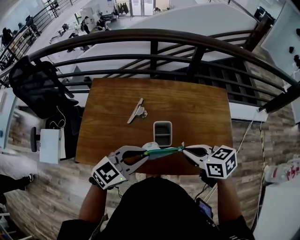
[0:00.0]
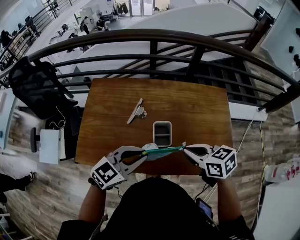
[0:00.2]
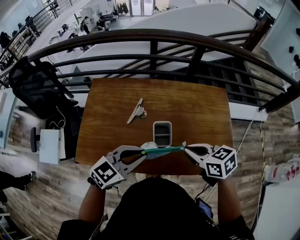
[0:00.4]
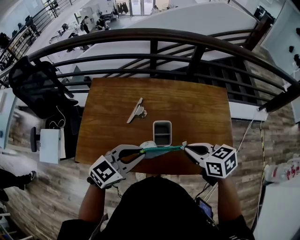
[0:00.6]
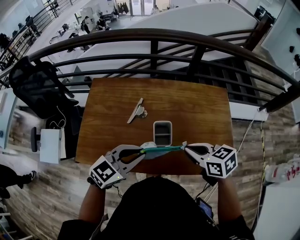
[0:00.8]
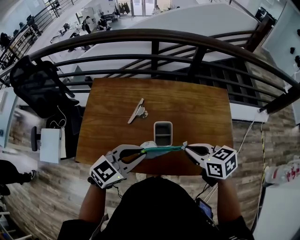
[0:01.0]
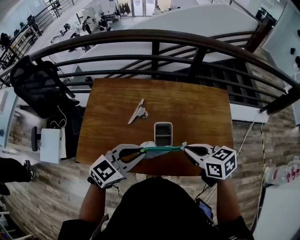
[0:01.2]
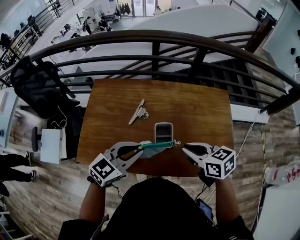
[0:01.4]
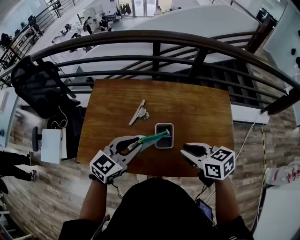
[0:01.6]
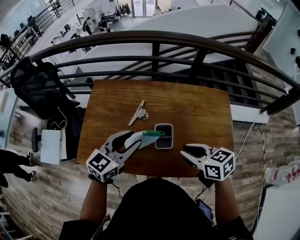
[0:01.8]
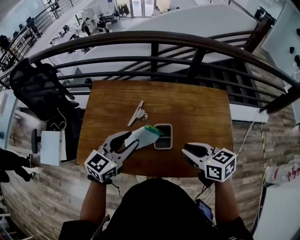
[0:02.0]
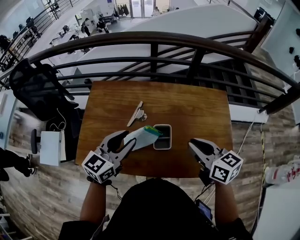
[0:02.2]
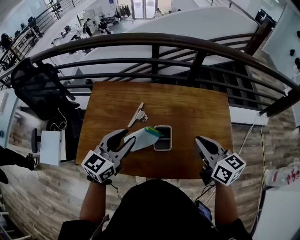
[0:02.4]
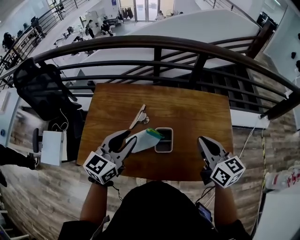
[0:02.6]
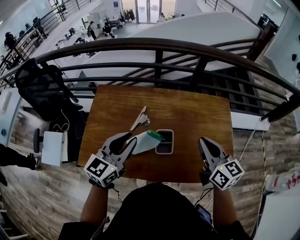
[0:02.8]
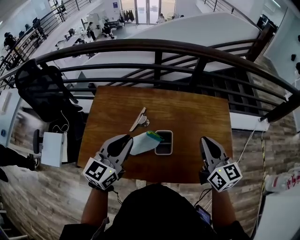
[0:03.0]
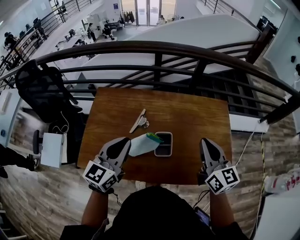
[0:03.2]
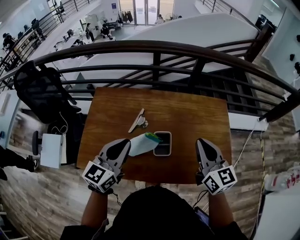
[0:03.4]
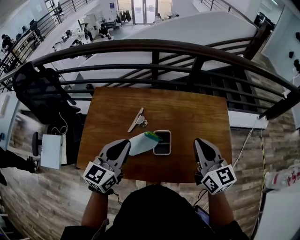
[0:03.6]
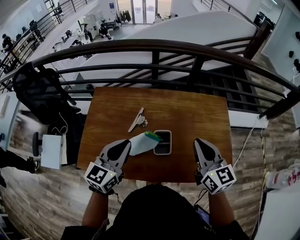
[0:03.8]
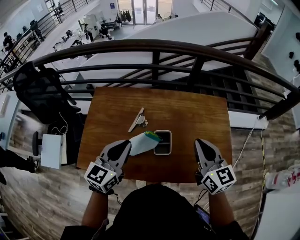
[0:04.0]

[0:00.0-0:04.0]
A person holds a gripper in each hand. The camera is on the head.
0:00.0 to 0:01.4: The grippers move only a little.
0:01.4 to 0:02.6: The right gripper goes about 10 cm upward and to the right, and swivels roughly 30 degrees. The left gripper goes approximately 5 cm forward, and swivels approximately 20 degrees.
0:02.6 to 0:04.0: The left gripper closes up.

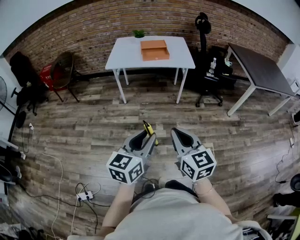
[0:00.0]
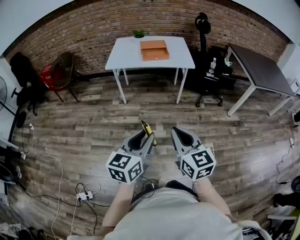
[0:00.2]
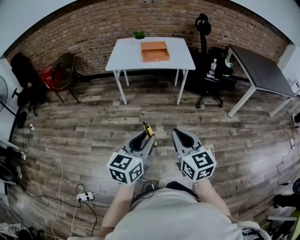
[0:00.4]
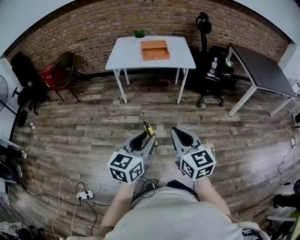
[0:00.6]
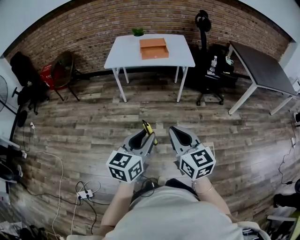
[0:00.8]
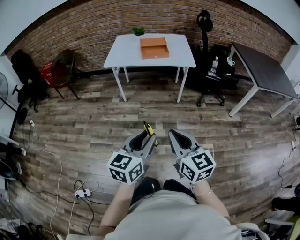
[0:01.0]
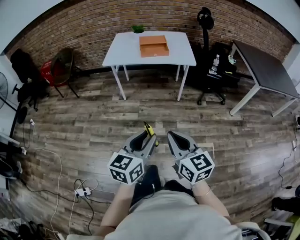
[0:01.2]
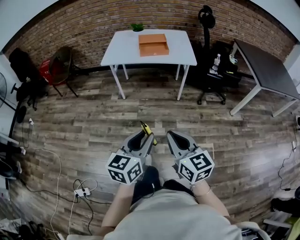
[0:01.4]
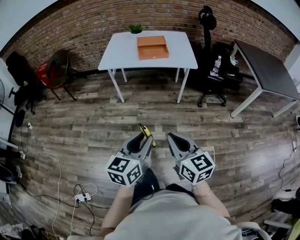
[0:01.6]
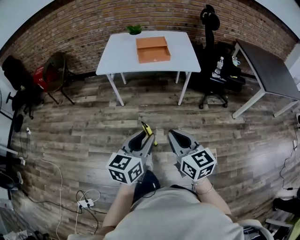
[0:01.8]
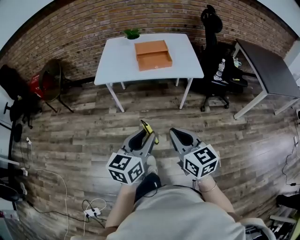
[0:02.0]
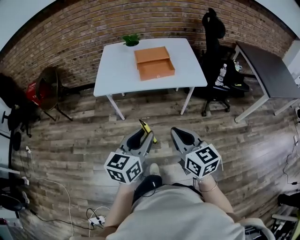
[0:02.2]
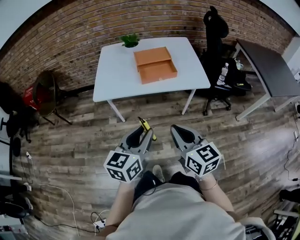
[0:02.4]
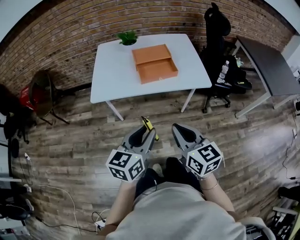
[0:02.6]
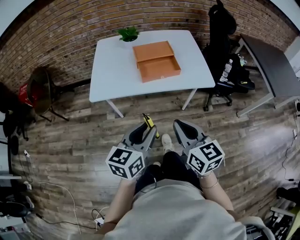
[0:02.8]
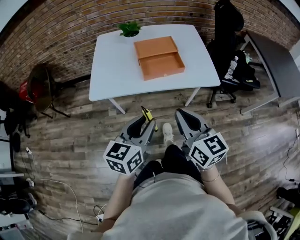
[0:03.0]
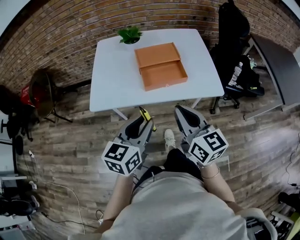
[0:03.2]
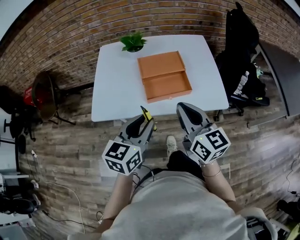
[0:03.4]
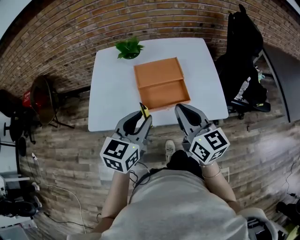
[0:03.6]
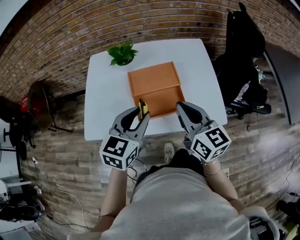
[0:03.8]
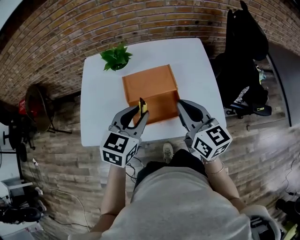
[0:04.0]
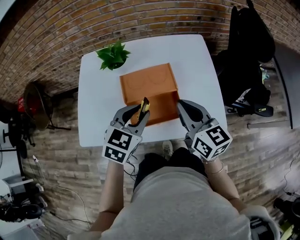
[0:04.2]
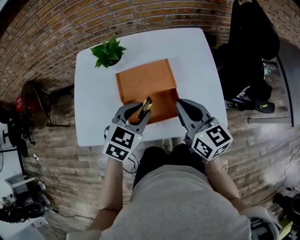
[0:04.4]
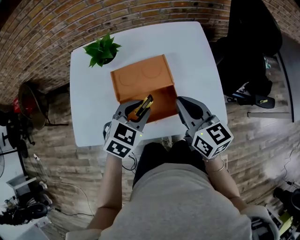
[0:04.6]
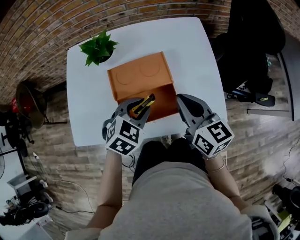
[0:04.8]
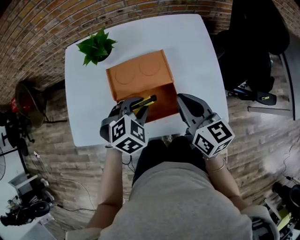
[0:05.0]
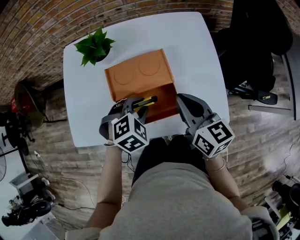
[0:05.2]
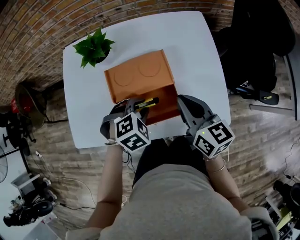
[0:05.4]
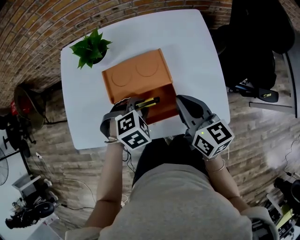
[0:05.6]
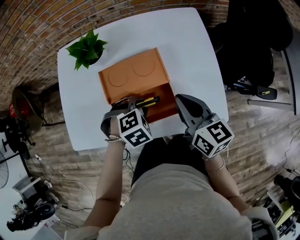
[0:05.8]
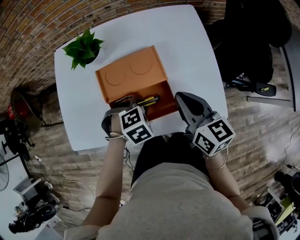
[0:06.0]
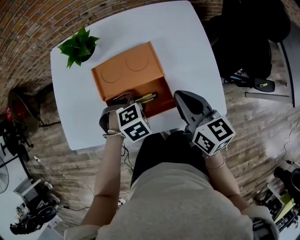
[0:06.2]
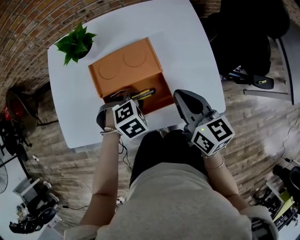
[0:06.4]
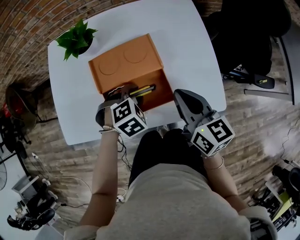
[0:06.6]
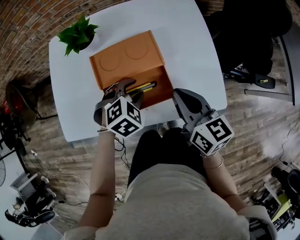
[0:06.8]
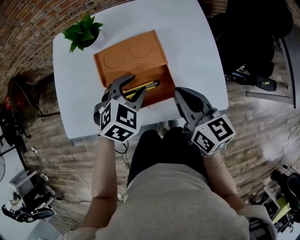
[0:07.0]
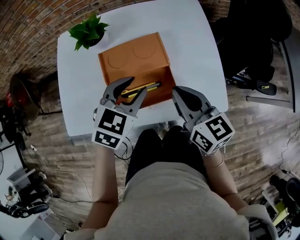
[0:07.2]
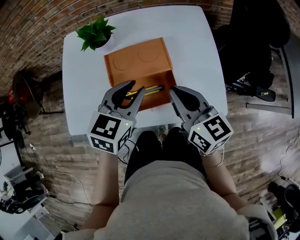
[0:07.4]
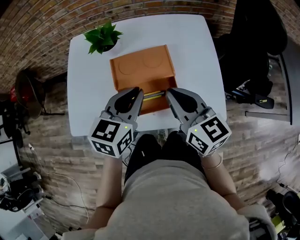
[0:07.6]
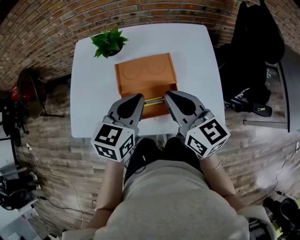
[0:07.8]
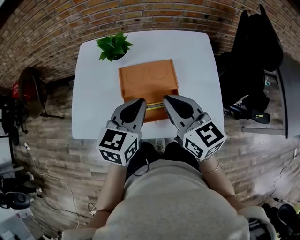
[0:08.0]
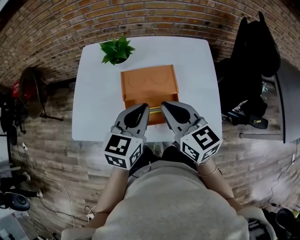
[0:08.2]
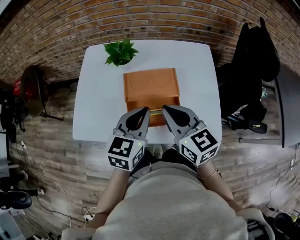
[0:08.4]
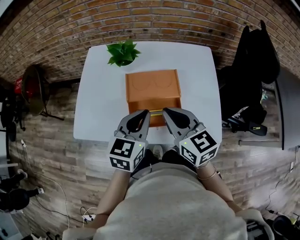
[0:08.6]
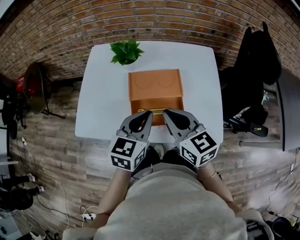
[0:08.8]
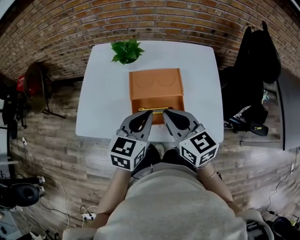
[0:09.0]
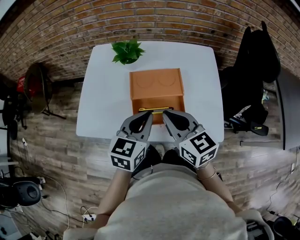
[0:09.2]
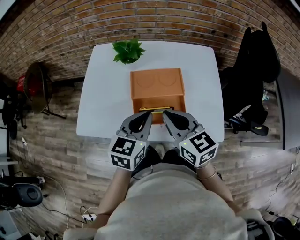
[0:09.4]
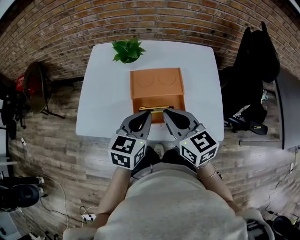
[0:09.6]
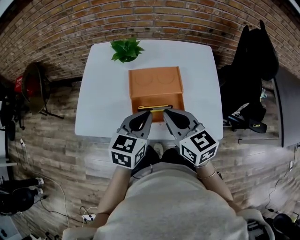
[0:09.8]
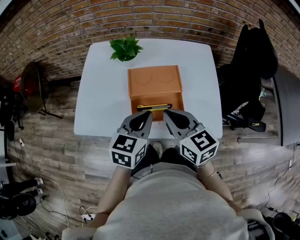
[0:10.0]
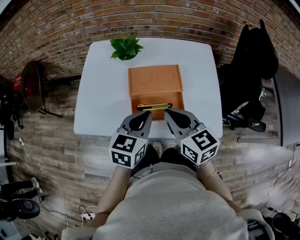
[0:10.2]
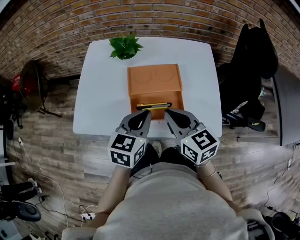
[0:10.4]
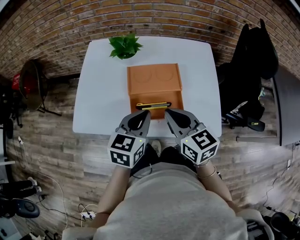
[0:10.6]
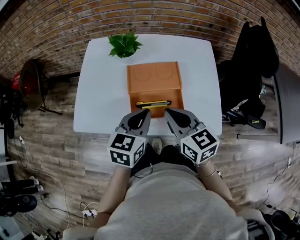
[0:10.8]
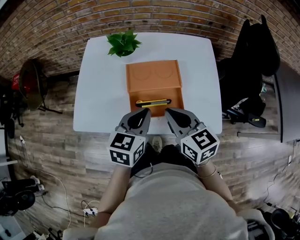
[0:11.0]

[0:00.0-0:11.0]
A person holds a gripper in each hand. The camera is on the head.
0:00.0 to 0:01.6: The left gripper travels forward by about 10 cm; the right gripper travels forward and downward by roughly 10 cm.
0:01.6 to 0:03.2: The two grippers travel together, forward, approximately 50 cm.
0:03.2 to 0:04.8: The two grippers go roughly 30 cm forward. The left gripper tips its fingers downward by roughly 30 degrees.
0:04.8 to 0:06.2: The left gripper goes approximately 10 cm downward, and rotates roughly 30 degrees.
0:06.2 to 0:07.8: The left gripper moves upward, some 20 cm, tilts its fingers roughly 50 degrees upward, and closes, while the right gripper shifts approximately 10 cm upward.
0:07.8 to 0:09.4: The left gripper ends up about 5 cm from where it was. Meanwhile the right gripper moves to the left, about 5 cm.
0:09.4 to 0:11.0: The grippers stay close to where they were, moving slightly.

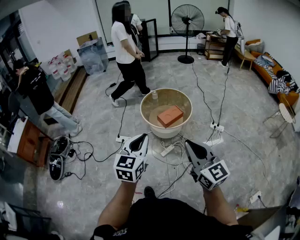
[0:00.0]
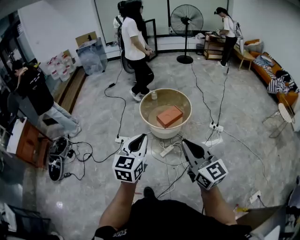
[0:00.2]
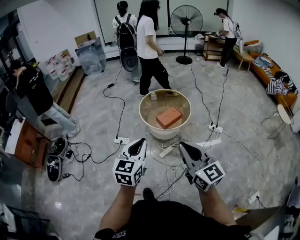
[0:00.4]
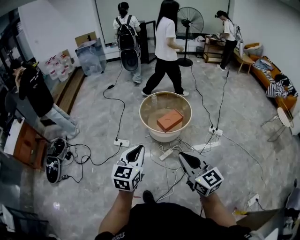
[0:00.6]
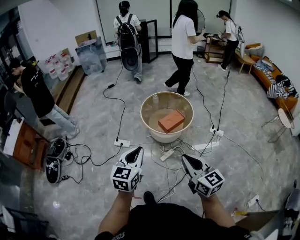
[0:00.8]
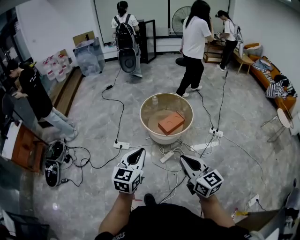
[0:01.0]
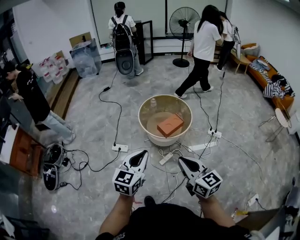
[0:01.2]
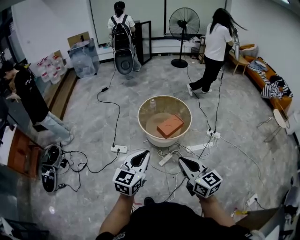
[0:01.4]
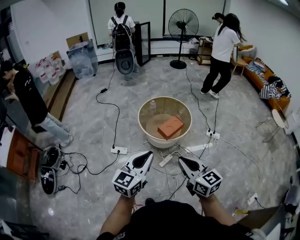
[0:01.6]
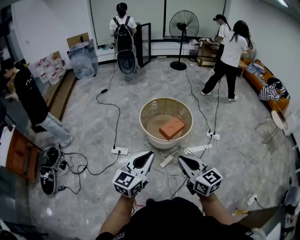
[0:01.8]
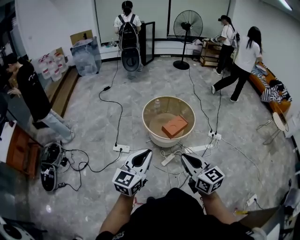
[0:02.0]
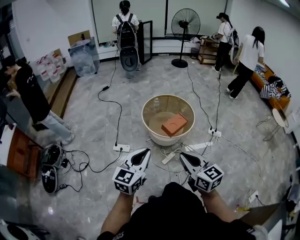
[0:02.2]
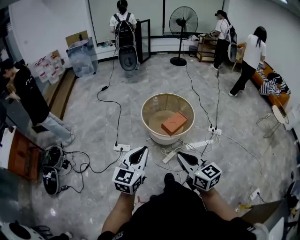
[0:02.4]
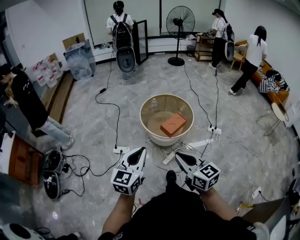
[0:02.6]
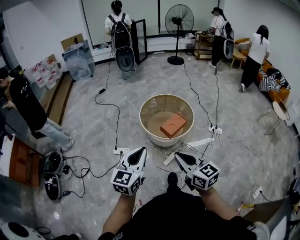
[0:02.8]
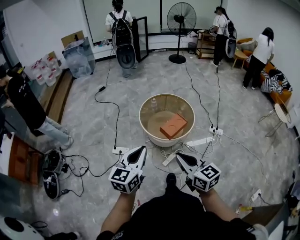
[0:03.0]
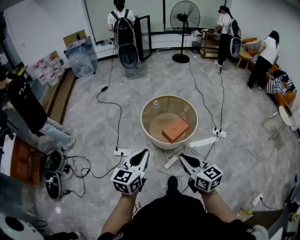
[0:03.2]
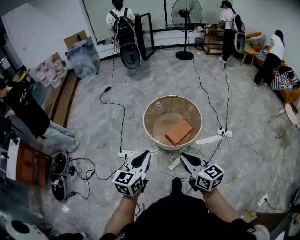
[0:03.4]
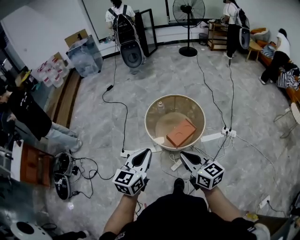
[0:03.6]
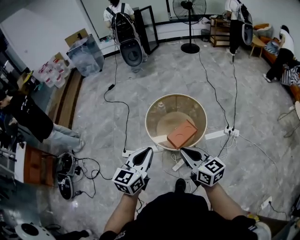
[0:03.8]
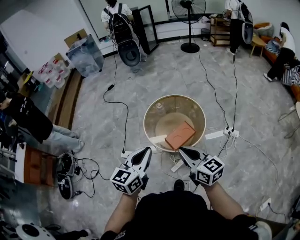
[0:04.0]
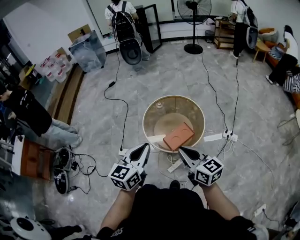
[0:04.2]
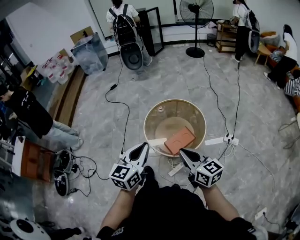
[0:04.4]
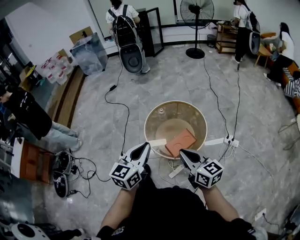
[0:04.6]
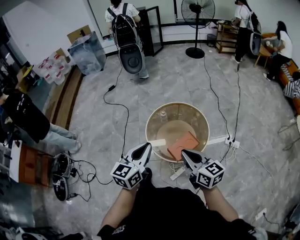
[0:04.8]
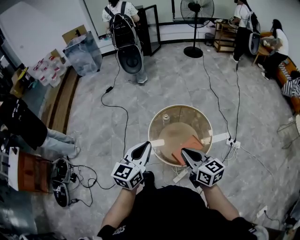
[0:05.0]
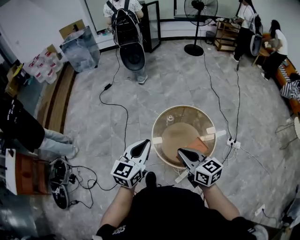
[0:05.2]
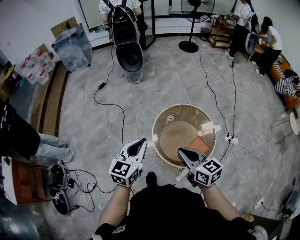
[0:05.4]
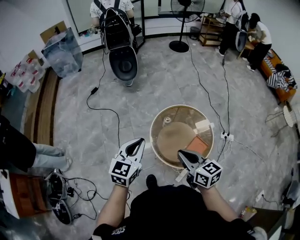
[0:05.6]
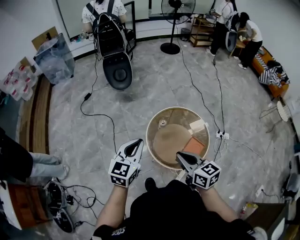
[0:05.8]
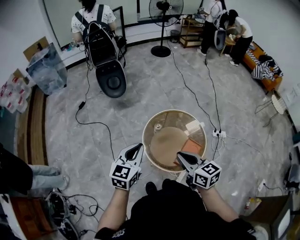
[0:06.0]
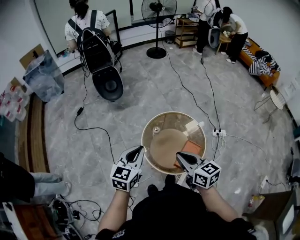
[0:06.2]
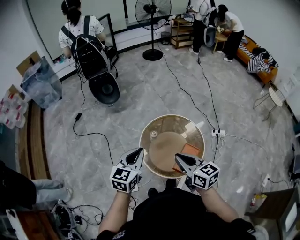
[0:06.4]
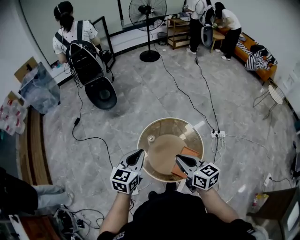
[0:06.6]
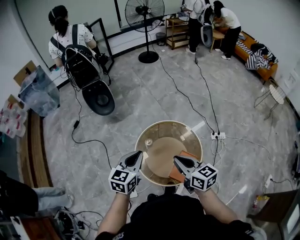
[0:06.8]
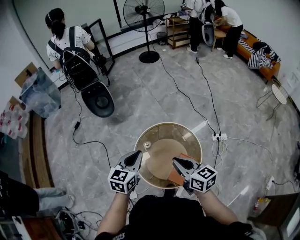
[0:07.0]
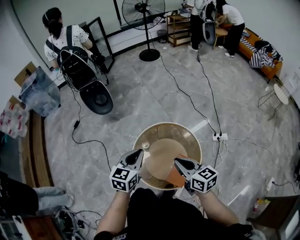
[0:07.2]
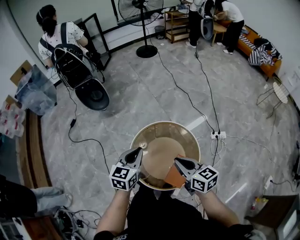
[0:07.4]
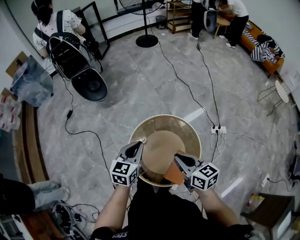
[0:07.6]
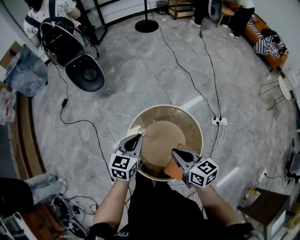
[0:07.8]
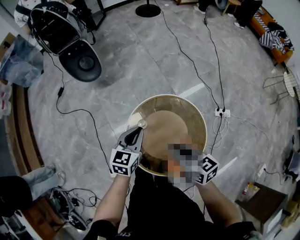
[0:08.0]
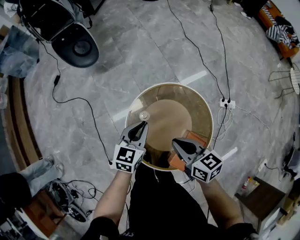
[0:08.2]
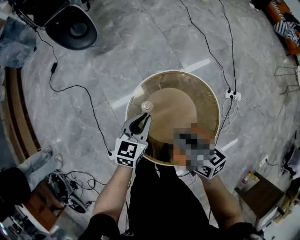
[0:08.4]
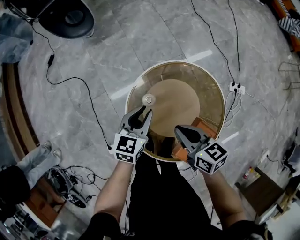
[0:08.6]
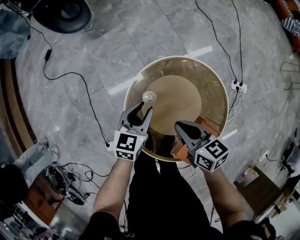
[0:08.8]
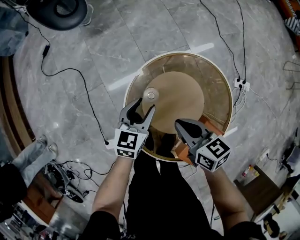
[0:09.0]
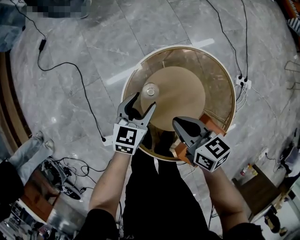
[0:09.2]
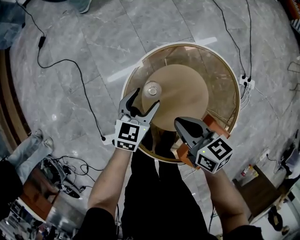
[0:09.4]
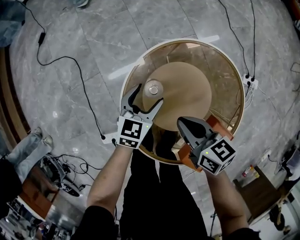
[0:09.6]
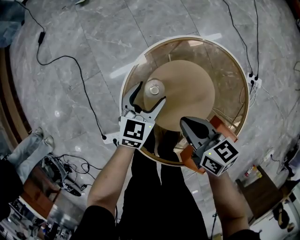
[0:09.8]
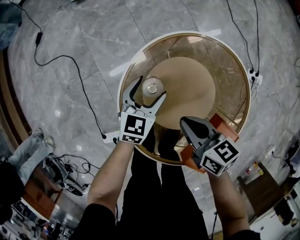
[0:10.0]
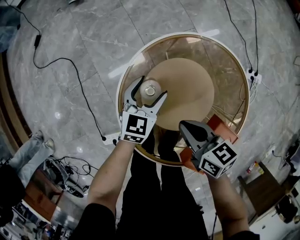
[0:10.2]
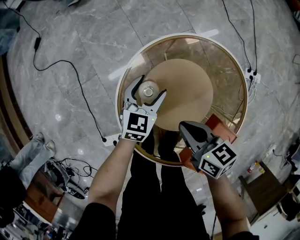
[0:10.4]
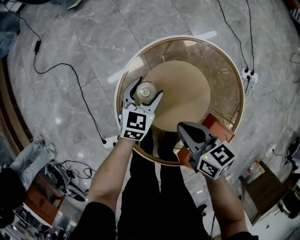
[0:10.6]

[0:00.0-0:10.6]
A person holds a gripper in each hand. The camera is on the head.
0:00.0 to 0:01.6: The left gripper moves to the left and forward, roughly 10 cm. Meanwhile the right gripper heads to the left, forward and downward, covering about 15 cm.
0:01.6 to 0:03.0: The grippers both shift forward by some 10 cm.
0:03.0 to 0:04.6: The grippers both shift forward and to the right by about 30 cm.
0:04.6 to 0:06.0: The left gripper is displaced forward and to the left by some 35 cm, and swivels about 20 degrees. The right gripper heads to the left and forward, covering some 30 cm, and turns by about 20 degrees.
0:06.0 to 0:07.6: Both grippers travel together forward and to the right, approximately 25 cm.
0:07.6 to 0:09.0: The grippers both shift downward by roughly 35 cm. The left gripper opens up.
0:09.0 to 0:10.6: Both grippers move downward, some 10 cm. The left gripper opens its fingers.
